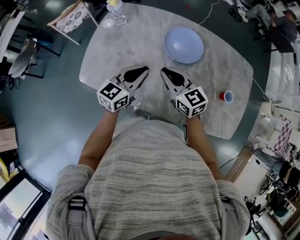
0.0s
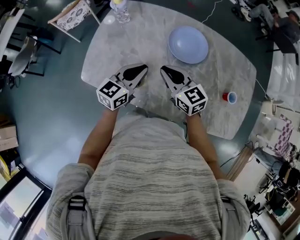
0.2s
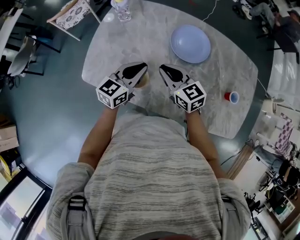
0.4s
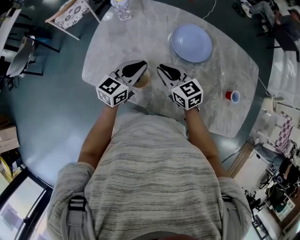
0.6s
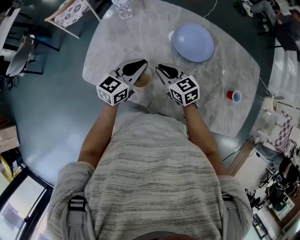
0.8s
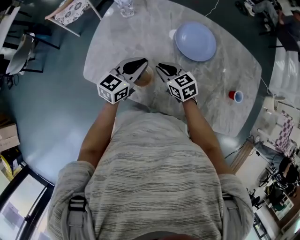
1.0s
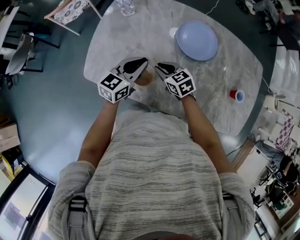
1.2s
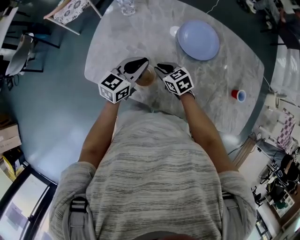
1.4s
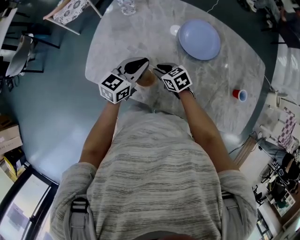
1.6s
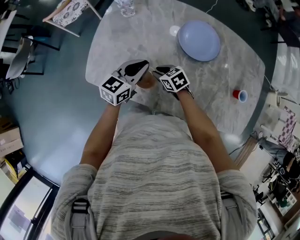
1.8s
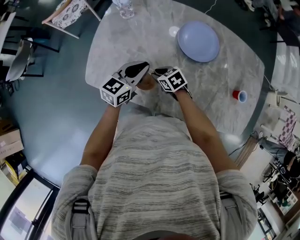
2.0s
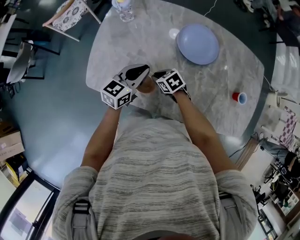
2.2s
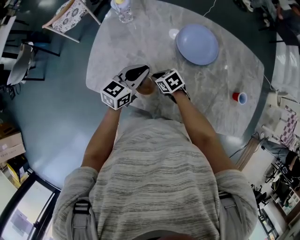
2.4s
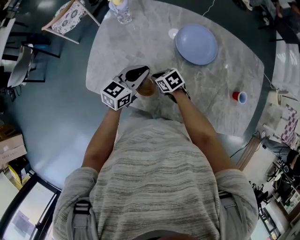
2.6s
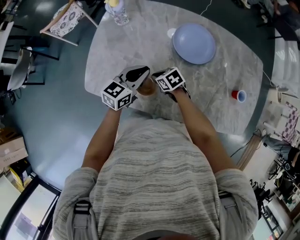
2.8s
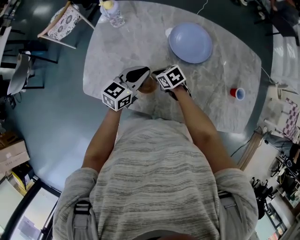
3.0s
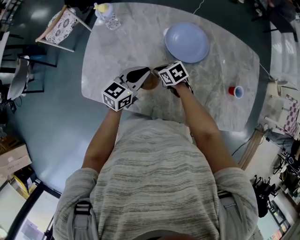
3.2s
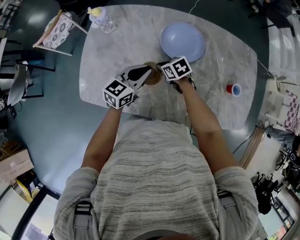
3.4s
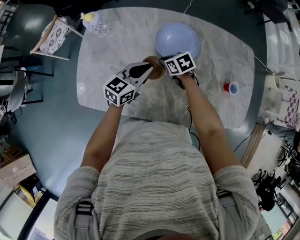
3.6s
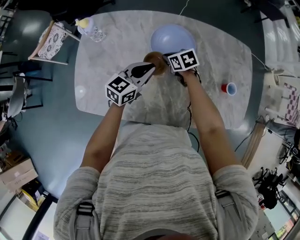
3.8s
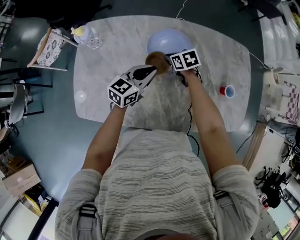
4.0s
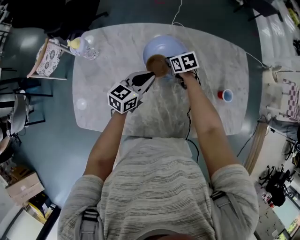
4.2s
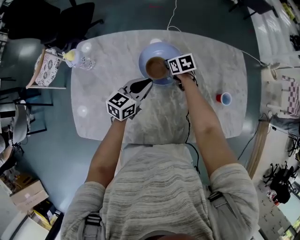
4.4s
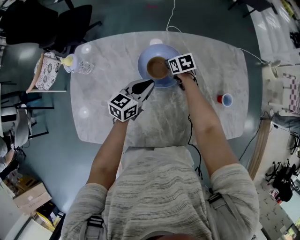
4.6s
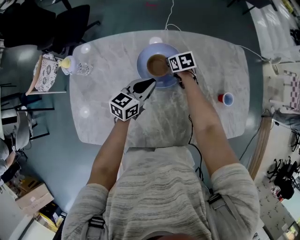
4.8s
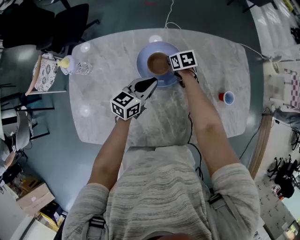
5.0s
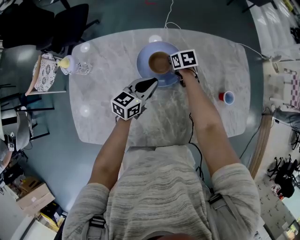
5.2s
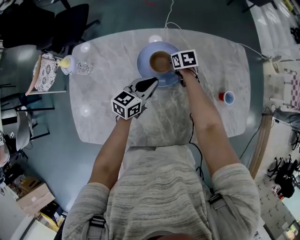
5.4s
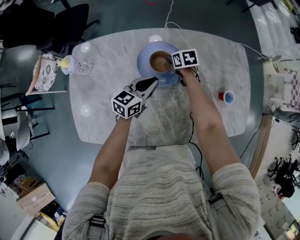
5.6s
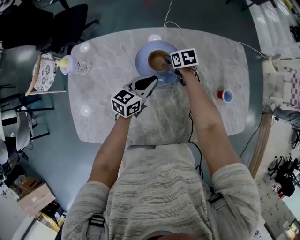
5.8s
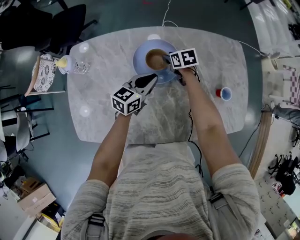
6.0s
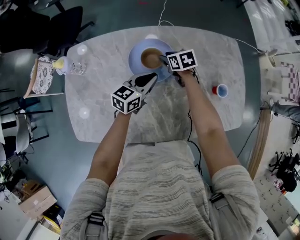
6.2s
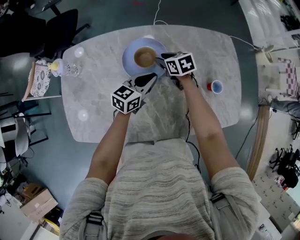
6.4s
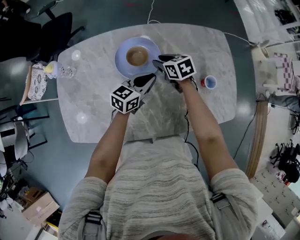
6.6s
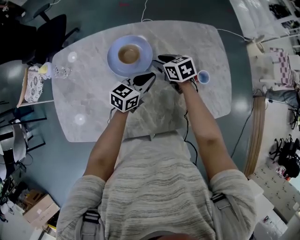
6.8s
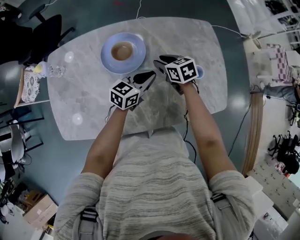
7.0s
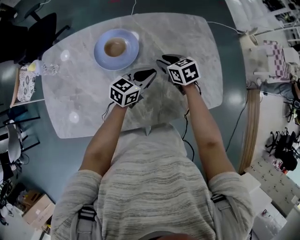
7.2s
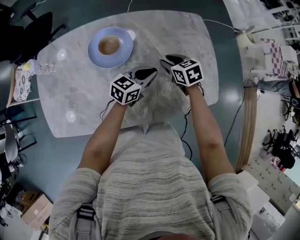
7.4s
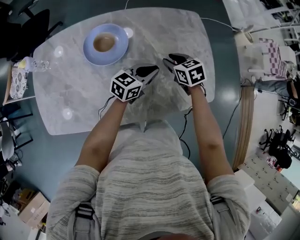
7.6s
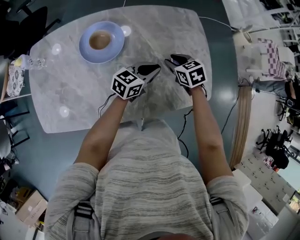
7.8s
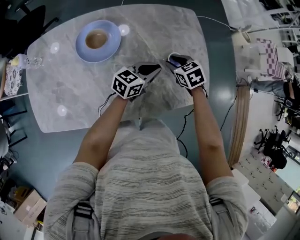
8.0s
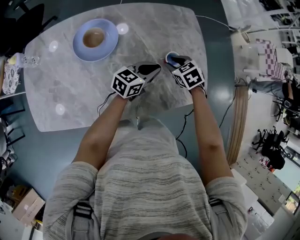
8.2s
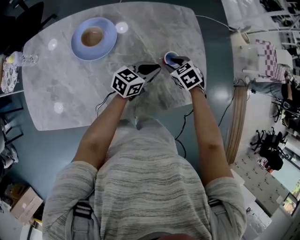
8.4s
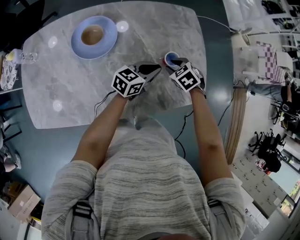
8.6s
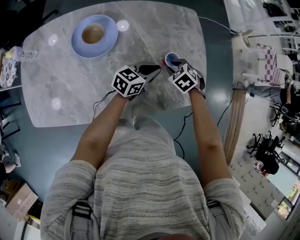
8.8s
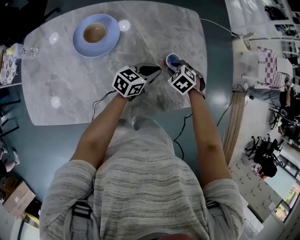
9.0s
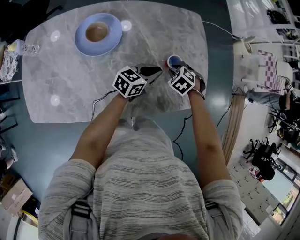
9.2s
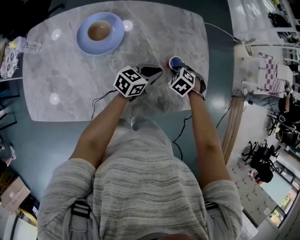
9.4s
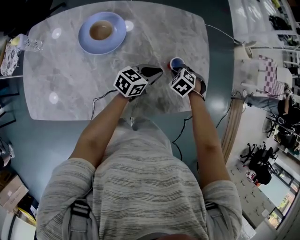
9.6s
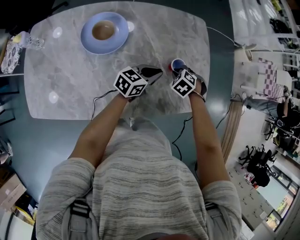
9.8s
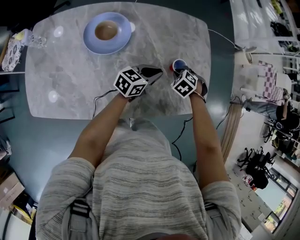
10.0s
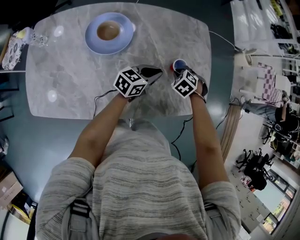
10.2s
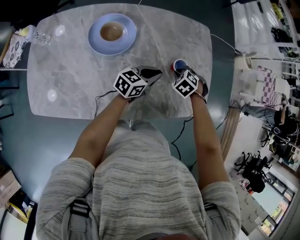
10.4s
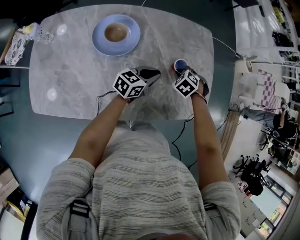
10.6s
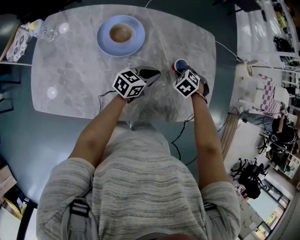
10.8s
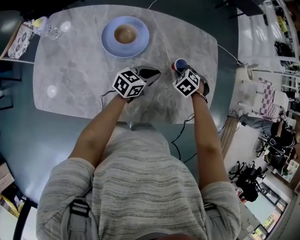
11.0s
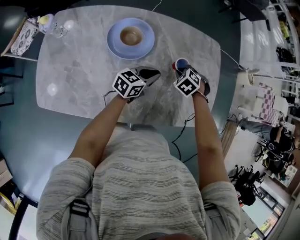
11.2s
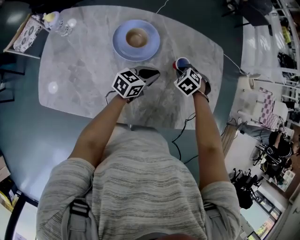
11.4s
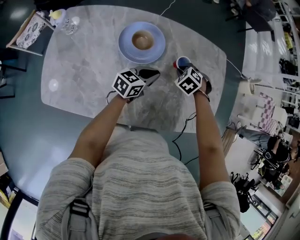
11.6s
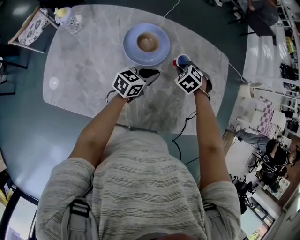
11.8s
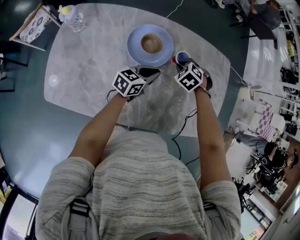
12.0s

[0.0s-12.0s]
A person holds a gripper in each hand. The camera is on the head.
0.0s to 1.6s: The left gripper moves to the left and downward, some 10 cm; the right gripper goes some 20 cm downward and to the left, tilts its fingers roughly 30 degrees downward, and opens.
1.6s to 3.0s: The grippers stay close to where they were, moving slightly.
3.0s to 4.4s: The left gripper travels to the right and forward by about 15 cm; the right gripper shifts roughly 30 cm to the right and forward, and swivels some 30 degrees.
4.4s to 6.0s: The right gripper opens up.
6.0s to 7.6s: The left gripper heads to the right, covering some 25 cm. The right gripper moves to the right and backward, approximately 30 cm.
7.6s to 9.0s: The left gripper goes about 5 cm to the right. Meanwhile the right gripper is displaced to the right and downward by some 10 cm, and turns by about 40 degrees.
9.0s to 10.4s: The grippers make only small movements.
10.4s to 12.0s: The right gripper moves approximately 20 cm. The left gripper changes place by some 20 cm.

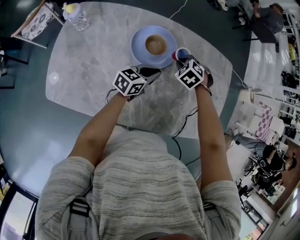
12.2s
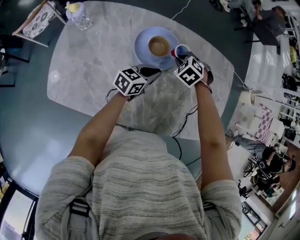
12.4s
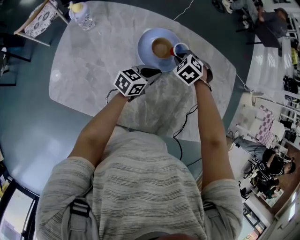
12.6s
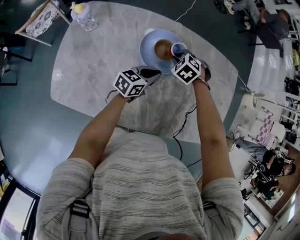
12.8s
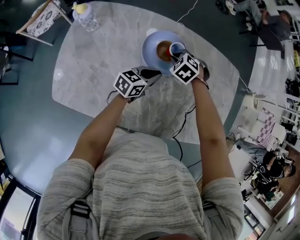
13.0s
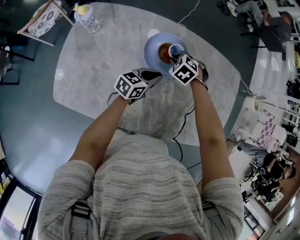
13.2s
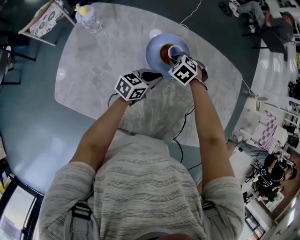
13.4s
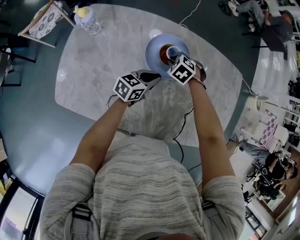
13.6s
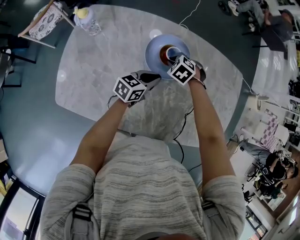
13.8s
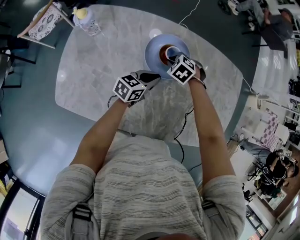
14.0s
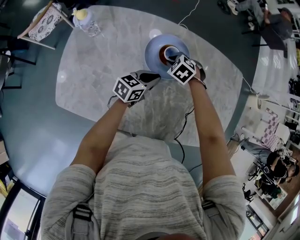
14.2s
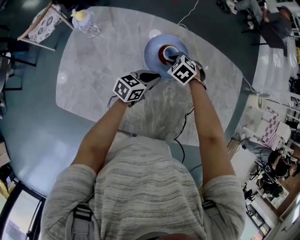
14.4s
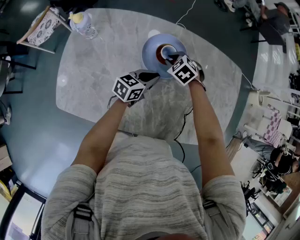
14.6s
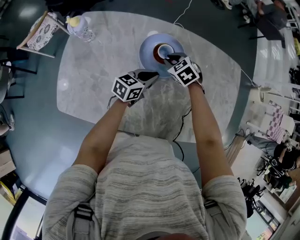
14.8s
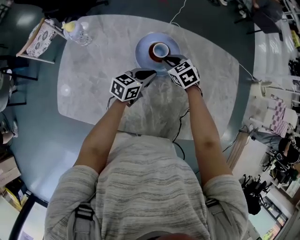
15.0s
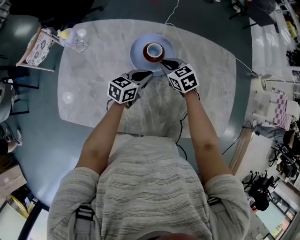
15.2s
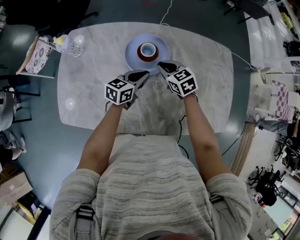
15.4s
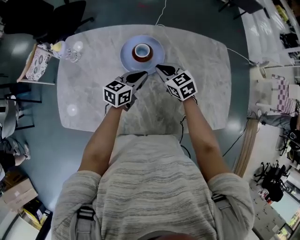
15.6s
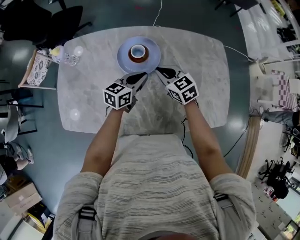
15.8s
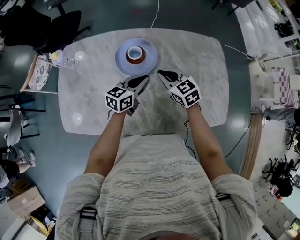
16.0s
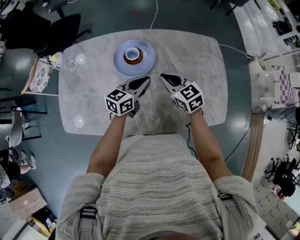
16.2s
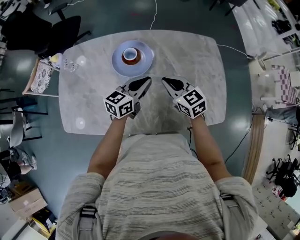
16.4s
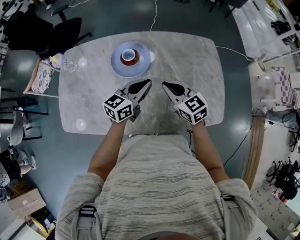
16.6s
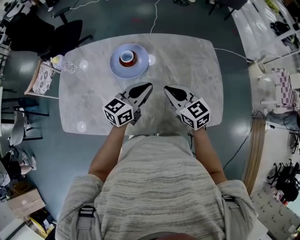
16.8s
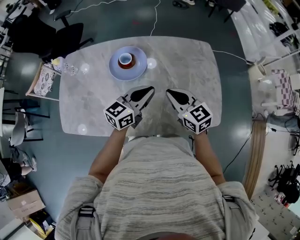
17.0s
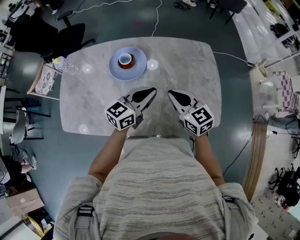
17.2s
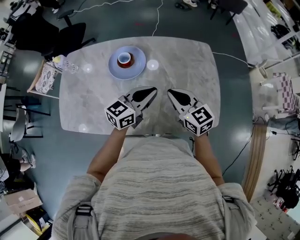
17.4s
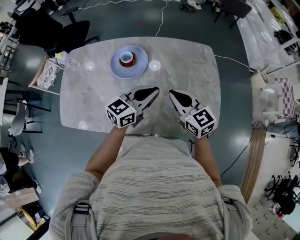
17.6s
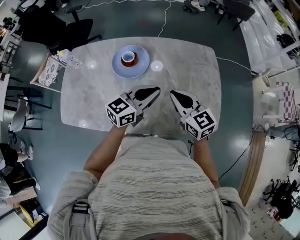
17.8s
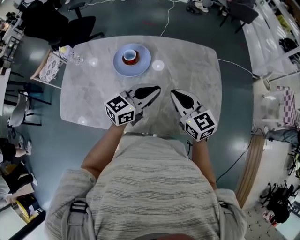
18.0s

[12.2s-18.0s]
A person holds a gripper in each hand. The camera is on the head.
12.2s to 13.6s: The right gripper goes approximately 10 cm to the left, while the left gripper is displaced to the left by approximately 5 cm.
13.6s to 15.0s: The right gripper shifts by roughly 5 cm, and turns by some 30 degrees.
15.0s to 16.6s: The left gripper moves upward, to the right and backward, some 20 cm. Meanwhile the right gripper heads backward, to the right and upward, covering approximately 25 cm, and swivels roughly 30 degrees.
16.6s to 18.0s: The right gripper is displaced to the right and upward by about 10 cm, while the left gripper travels to the right by roughly 10 cm.

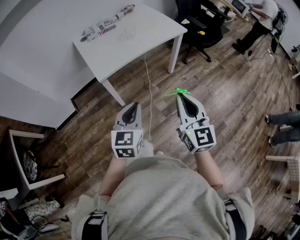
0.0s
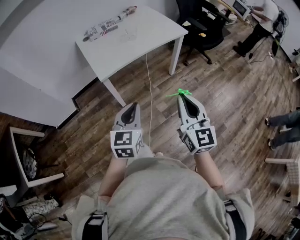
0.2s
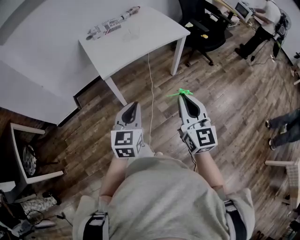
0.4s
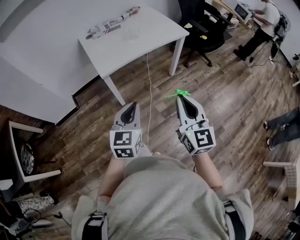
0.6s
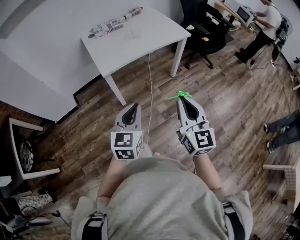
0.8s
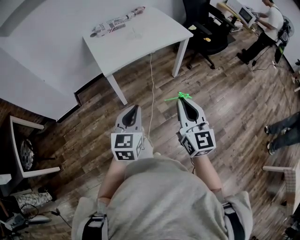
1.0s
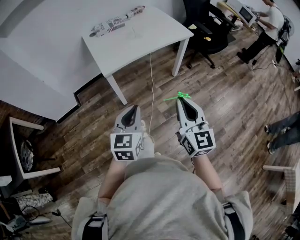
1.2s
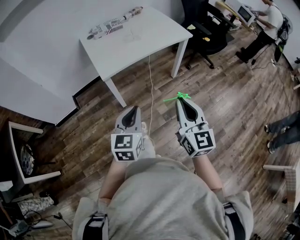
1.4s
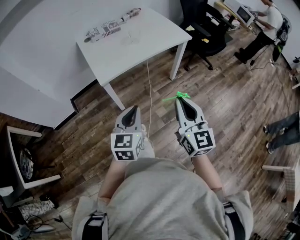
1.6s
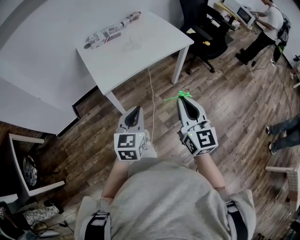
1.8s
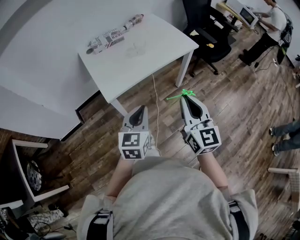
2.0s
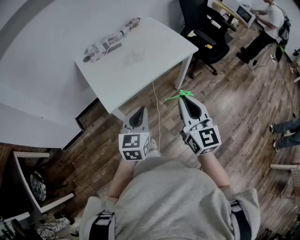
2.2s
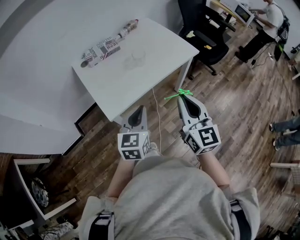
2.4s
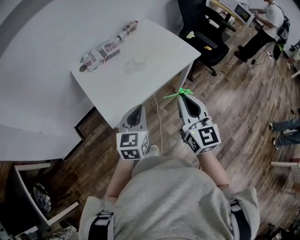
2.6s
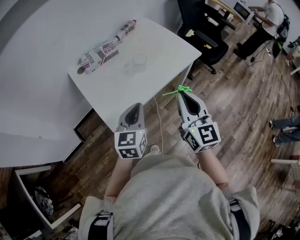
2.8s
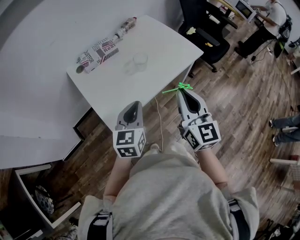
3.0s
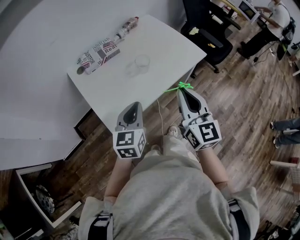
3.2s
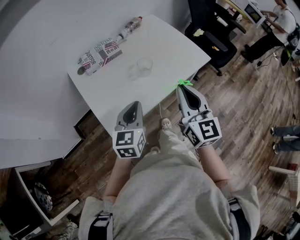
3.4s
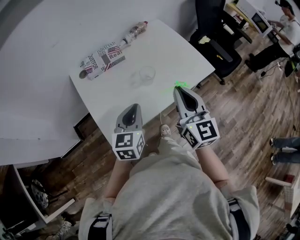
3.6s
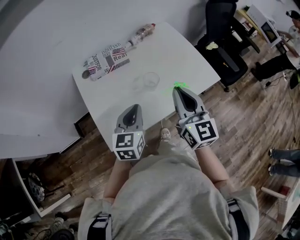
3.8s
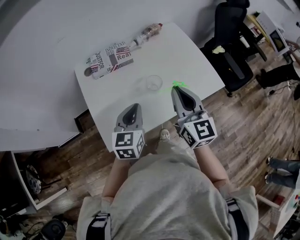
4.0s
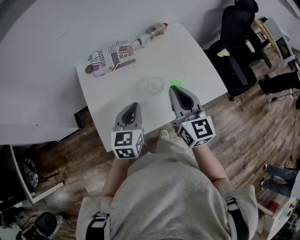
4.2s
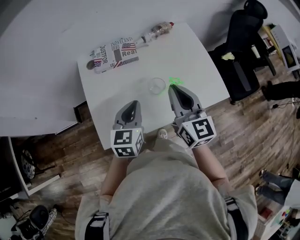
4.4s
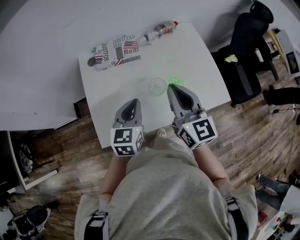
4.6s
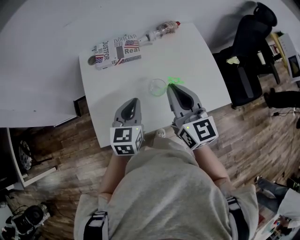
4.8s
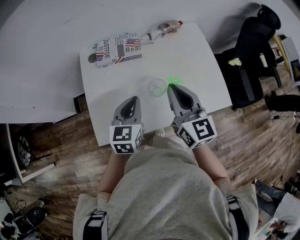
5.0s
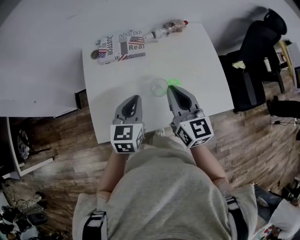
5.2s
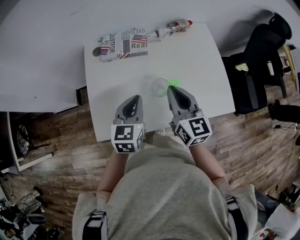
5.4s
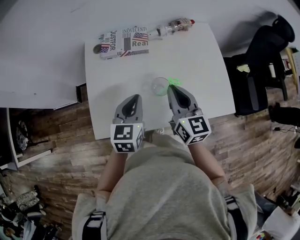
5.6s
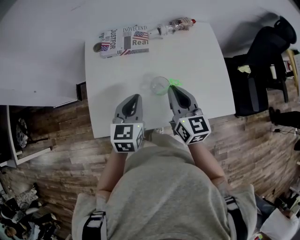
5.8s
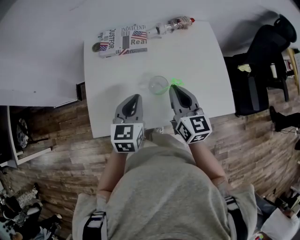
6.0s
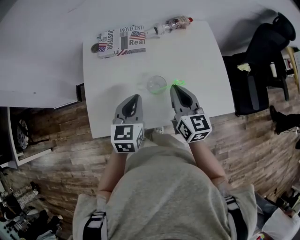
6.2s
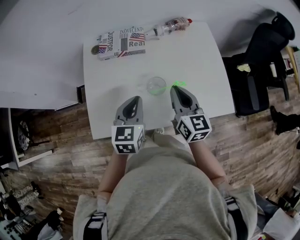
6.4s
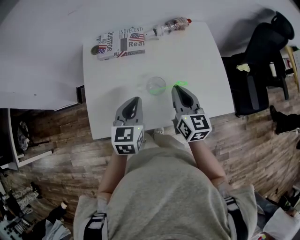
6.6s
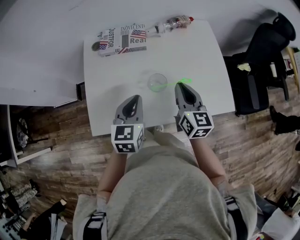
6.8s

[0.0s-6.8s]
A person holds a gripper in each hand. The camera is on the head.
0.0s to 1.4s: The grippers make only small movements.
1.4s to 2.8s: The two grippers go approximately 30 cm forward.
2.8s to 4.0s: Both grippers travel together forward, about 20 cm.
4.0s to 5.4s: The right gripper travels forward and downward by roughly 10 cm. Meanwhile the left gripper heads forward, covering about 5 cm.
5.4s to 6.8s: The right gripper shifts approximately 10 cm to the right and downward.
